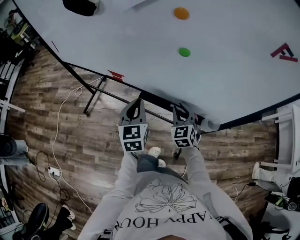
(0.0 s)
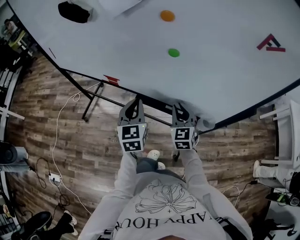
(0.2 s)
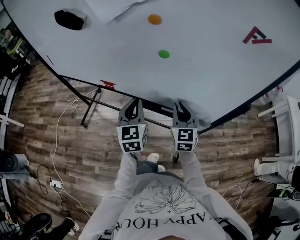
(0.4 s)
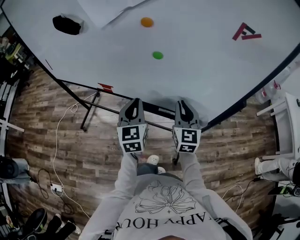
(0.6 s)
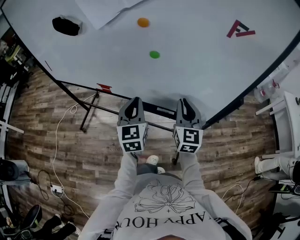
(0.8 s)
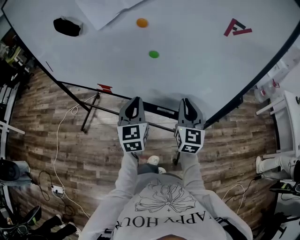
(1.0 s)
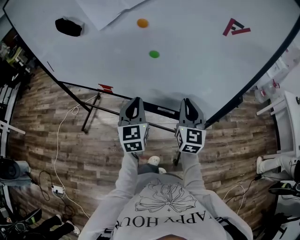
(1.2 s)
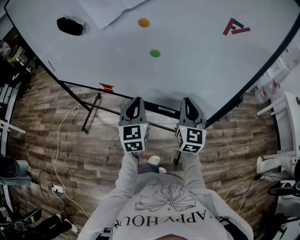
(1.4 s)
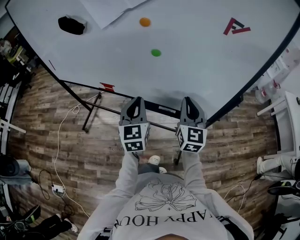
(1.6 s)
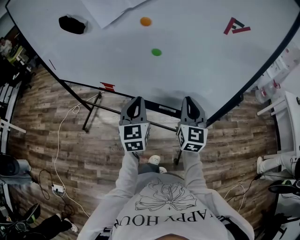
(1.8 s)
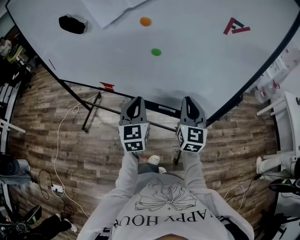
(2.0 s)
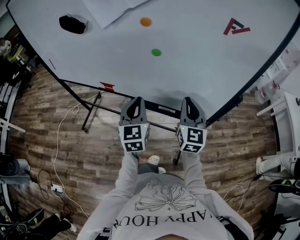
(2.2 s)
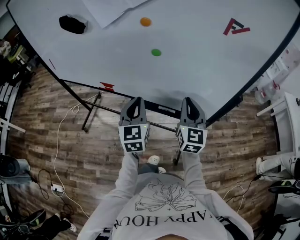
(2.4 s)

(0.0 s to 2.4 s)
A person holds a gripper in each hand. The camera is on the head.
0.0 s - 1.2 s: The right gripper travels upward and to the right by approximately 20 cm, and rotates about 40 degrees, while the left gripper heads upward and to the right, covering about 10 cm.
1.2 s - 2.4 s: Both grippers stay put.

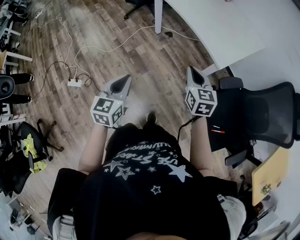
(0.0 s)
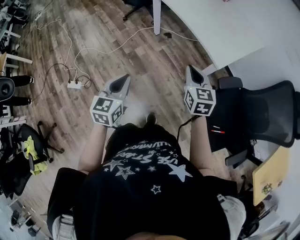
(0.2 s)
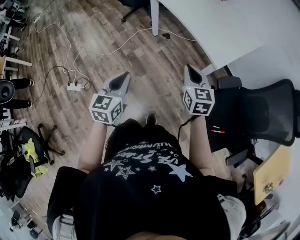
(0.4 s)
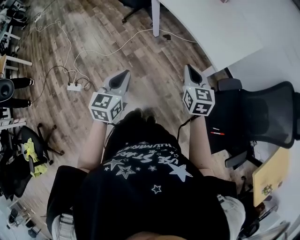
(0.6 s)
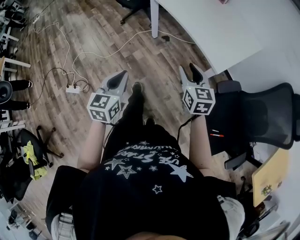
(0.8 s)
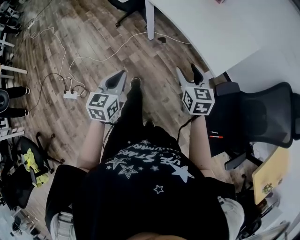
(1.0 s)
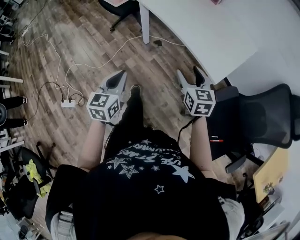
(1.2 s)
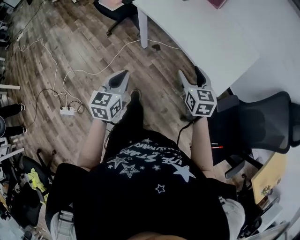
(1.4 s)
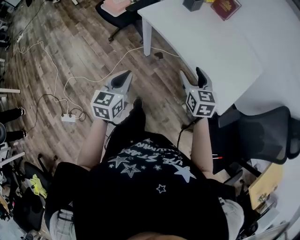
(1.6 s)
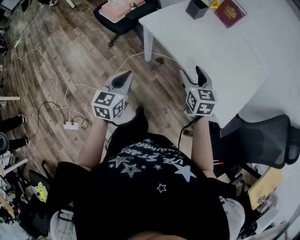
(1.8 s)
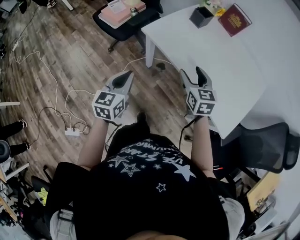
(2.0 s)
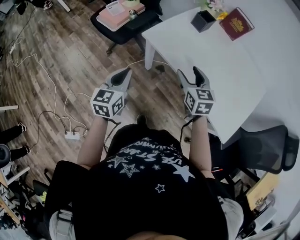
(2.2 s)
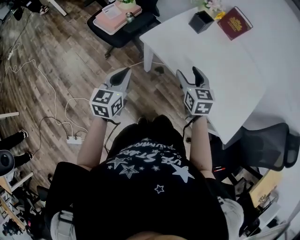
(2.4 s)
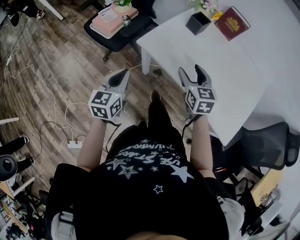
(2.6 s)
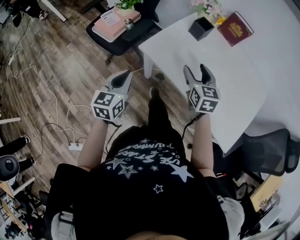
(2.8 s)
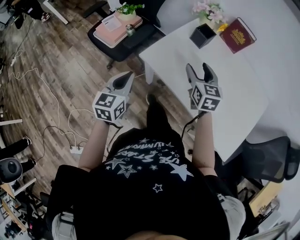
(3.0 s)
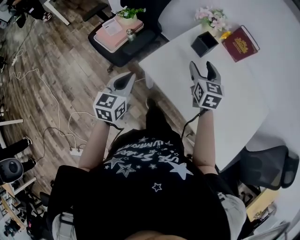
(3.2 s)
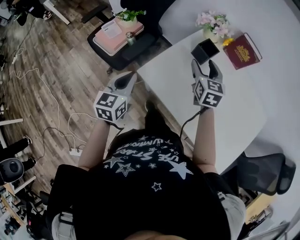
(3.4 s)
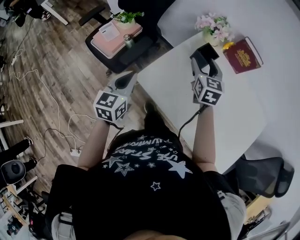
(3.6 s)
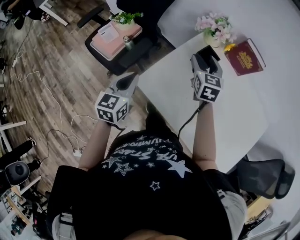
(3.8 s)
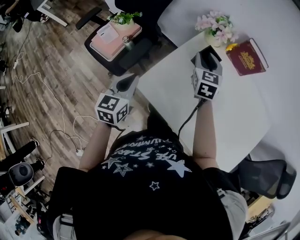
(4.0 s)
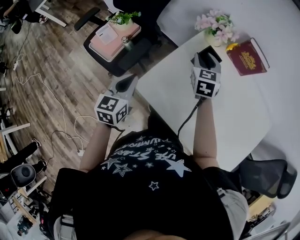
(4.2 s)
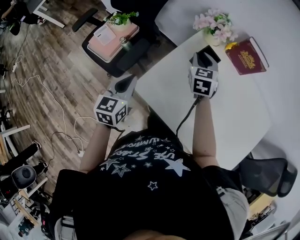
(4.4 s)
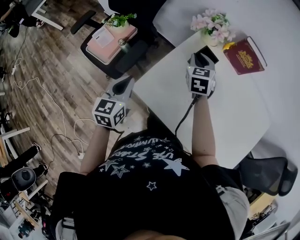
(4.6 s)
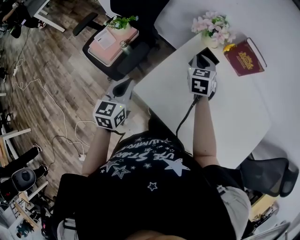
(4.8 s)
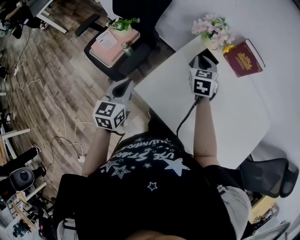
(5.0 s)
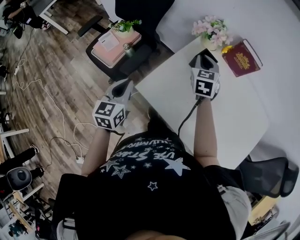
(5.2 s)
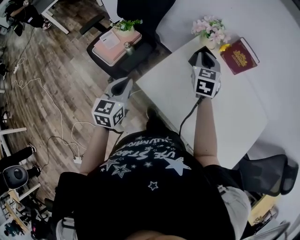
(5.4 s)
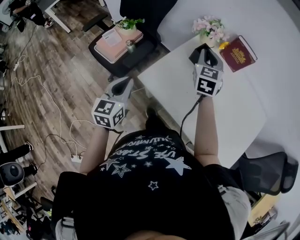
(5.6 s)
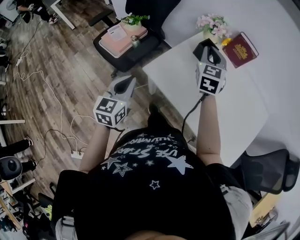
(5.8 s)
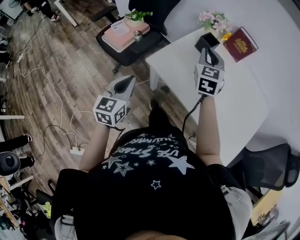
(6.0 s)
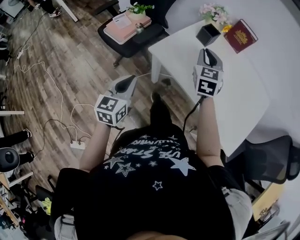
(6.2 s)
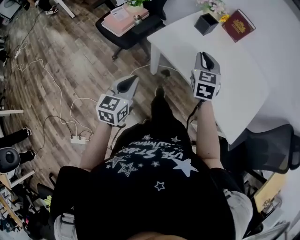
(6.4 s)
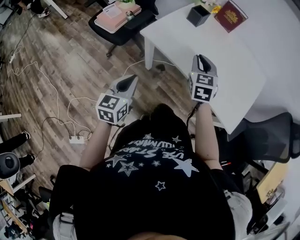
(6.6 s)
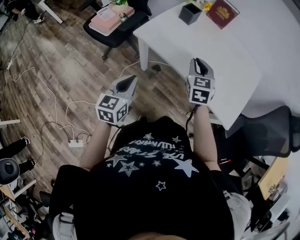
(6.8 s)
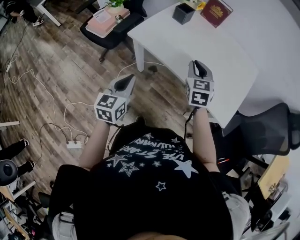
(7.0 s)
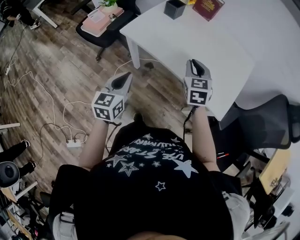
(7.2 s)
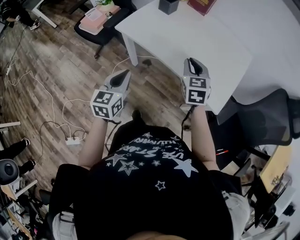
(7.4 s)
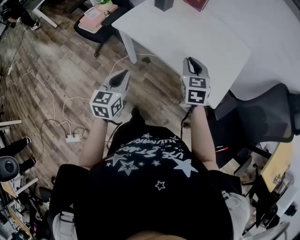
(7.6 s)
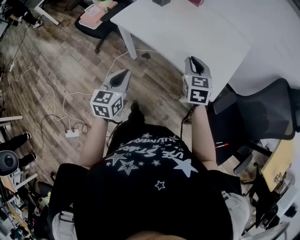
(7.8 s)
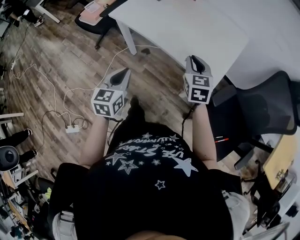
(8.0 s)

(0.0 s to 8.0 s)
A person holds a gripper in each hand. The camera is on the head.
0.0 s - 1.6 s: The grippers both shift forward by roughly 30 cm. The right gripper opens its fingers.
1.6 s - 3.2 s: Both grippers move forward, approximately 35 cm.
3.2 s - 4.8 s: The two grippers go some 15 cm forward. The right gripper closes up.
4.8 s - 6.4 s: Both grippers travel together backward, roughly 30 cm.
6.4 s - 8.0 s: Both grippers move to the right and backward, roughly 30 cm.

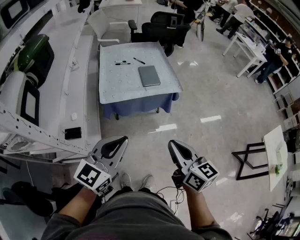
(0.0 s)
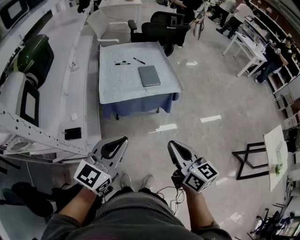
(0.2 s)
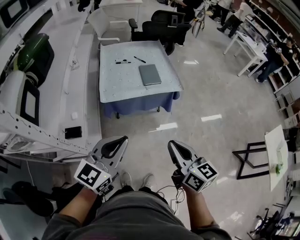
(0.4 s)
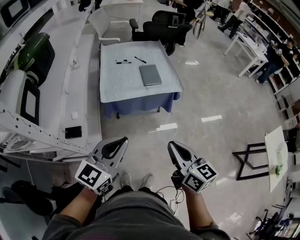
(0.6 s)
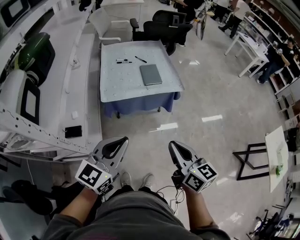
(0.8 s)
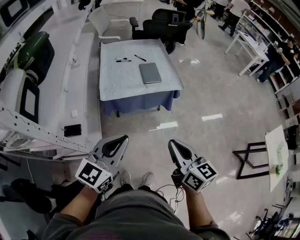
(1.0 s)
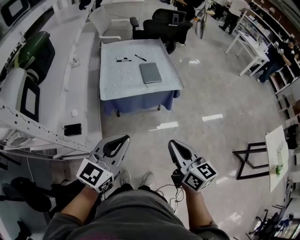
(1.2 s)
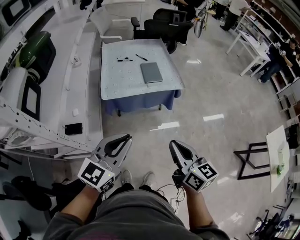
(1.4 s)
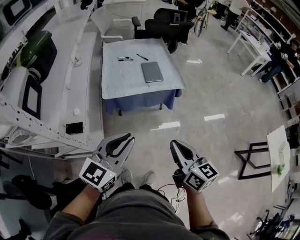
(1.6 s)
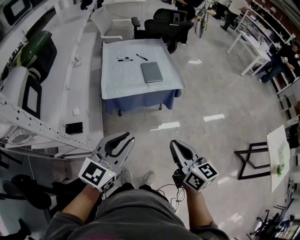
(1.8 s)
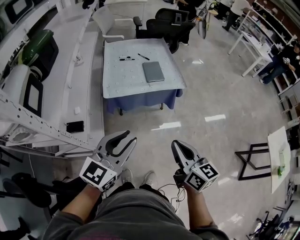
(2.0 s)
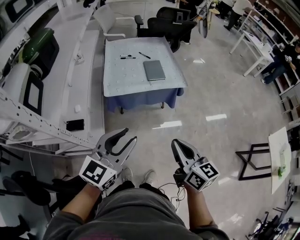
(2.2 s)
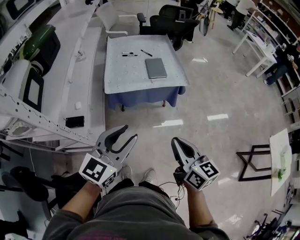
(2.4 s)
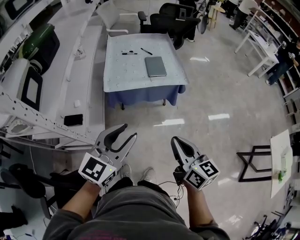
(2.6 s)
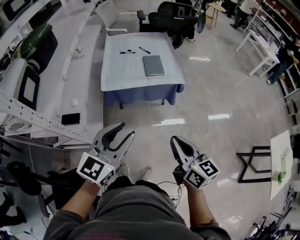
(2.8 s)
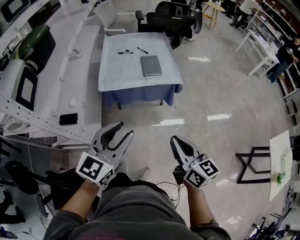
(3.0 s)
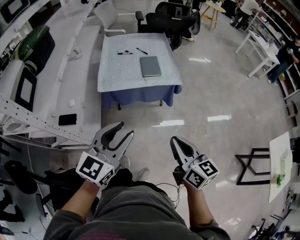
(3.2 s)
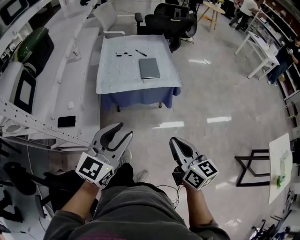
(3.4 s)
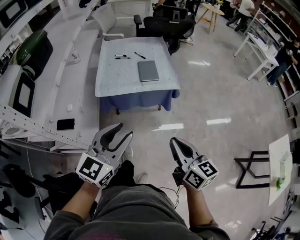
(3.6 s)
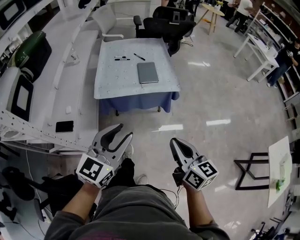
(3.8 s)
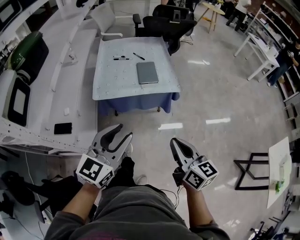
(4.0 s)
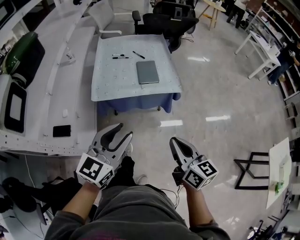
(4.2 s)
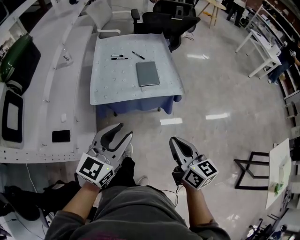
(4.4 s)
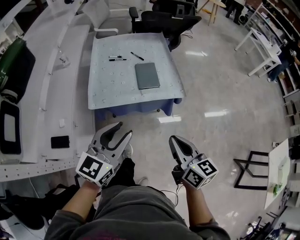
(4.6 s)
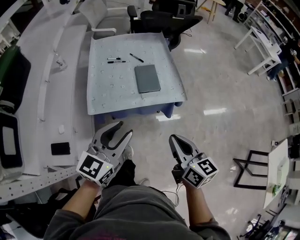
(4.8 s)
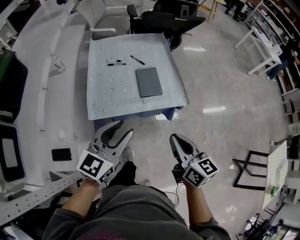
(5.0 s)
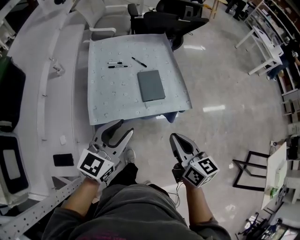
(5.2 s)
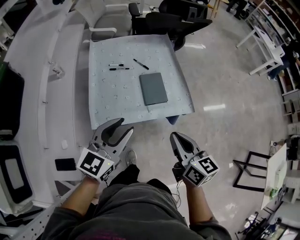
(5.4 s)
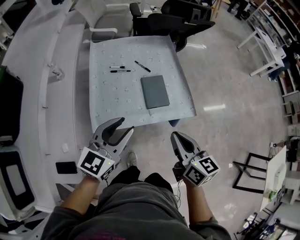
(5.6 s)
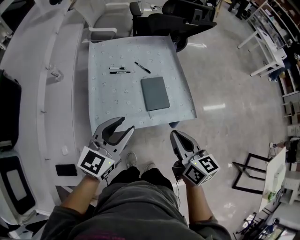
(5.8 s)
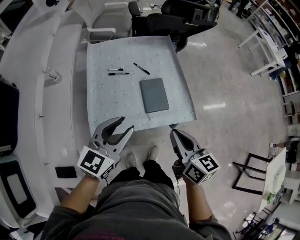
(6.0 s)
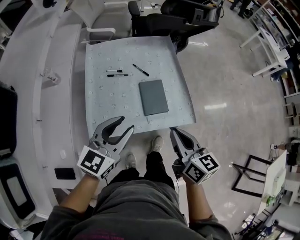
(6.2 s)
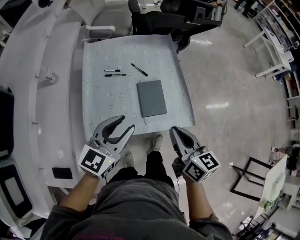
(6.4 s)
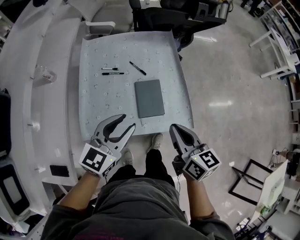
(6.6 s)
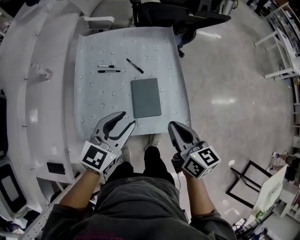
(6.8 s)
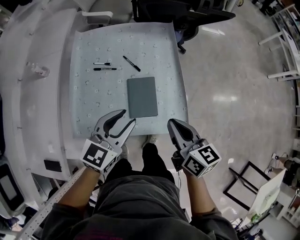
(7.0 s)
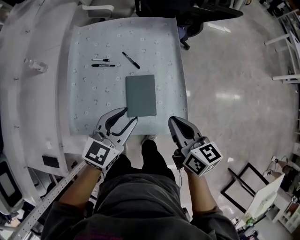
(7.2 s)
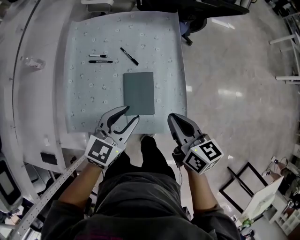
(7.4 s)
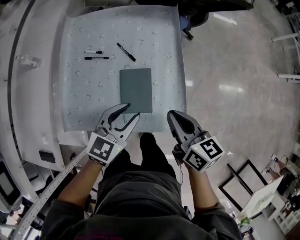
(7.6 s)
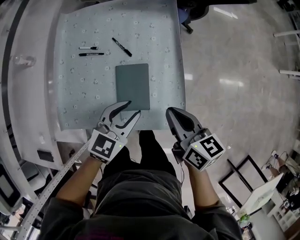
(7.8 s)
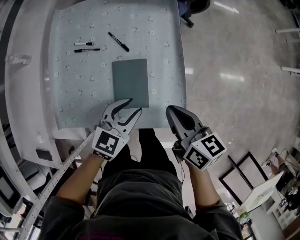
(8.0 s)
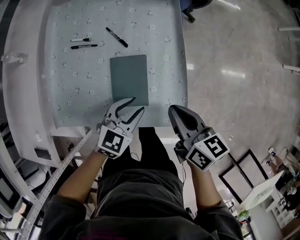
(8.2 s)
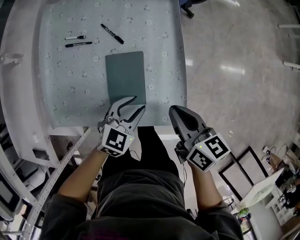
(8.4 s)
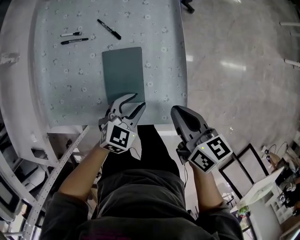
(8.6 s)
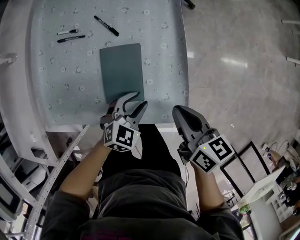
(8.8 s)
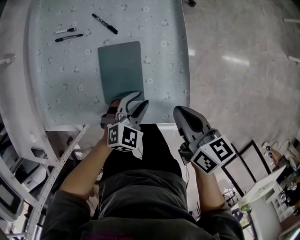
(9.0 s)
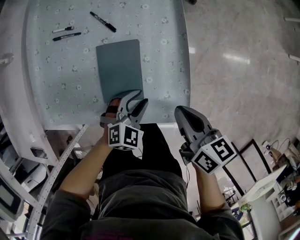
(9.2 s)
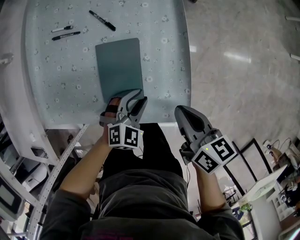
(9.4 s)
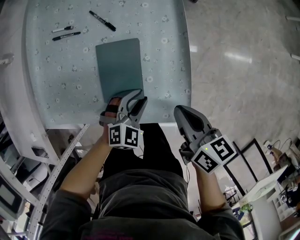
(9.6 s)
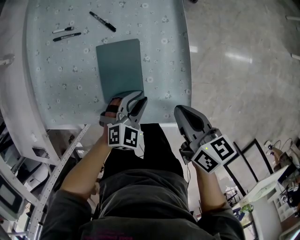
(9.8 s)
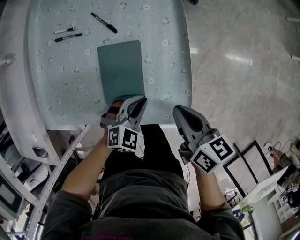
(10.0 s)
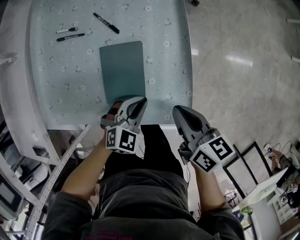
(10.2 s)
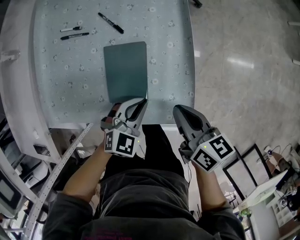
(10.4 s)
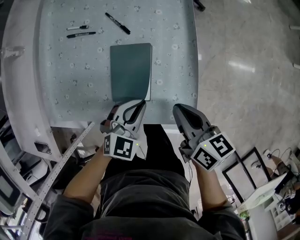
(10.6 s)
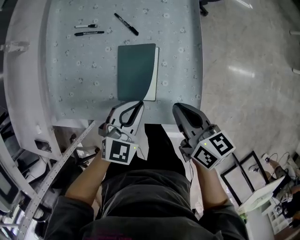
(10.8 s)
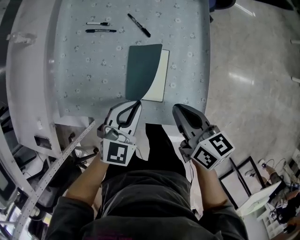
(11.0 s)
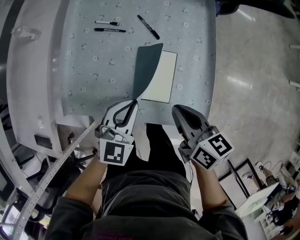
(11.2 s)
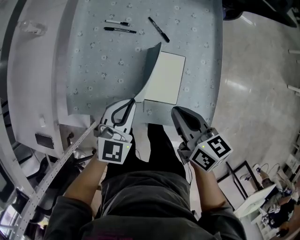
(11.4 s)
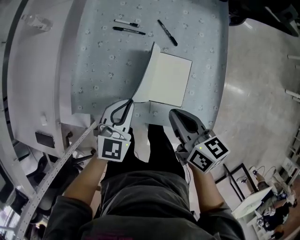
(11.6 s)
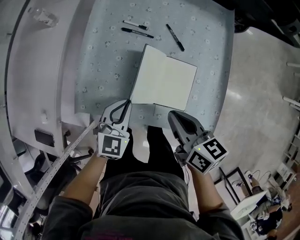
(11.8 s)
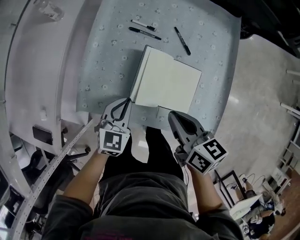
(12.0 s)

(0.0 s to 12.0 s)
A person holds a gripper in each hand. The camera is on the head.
0.0 s - 1.6 s: There are only small adjustments of the grippers.
1.6 s - 3.0 s: The grippers both shift to the right by about 5 cm. The left gripper opens its fingers.
3.0 s - 4.4 s: The grippers both shift forward by about 15 cm.
4.4 s - 6.0 s: Both grippers travel together forward, approximately 30 cm.
6.0 s - 7.6 s: The left gripper goes approximately 30 cm to the right, downward and forward, while the right gripper heads forward, to the right and downward, covering roughly 25 cm.
7.6 s - 9.0 s: The right gripper travels downward by about 10 cm; the left gripper moves downward, about 20 cm, and changes its angle by roughly 30 degrees.
9.0 s - 10.4 s: The left gripper closes up.
10.4 s - 12.0 s: Both grippers travel together to the left, roughly 25 cm. The left gripper turns by roughly 30 degrees.

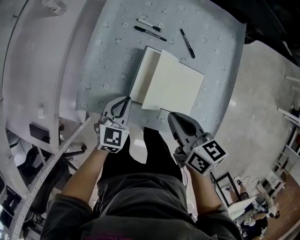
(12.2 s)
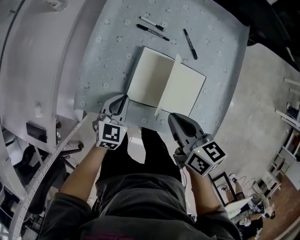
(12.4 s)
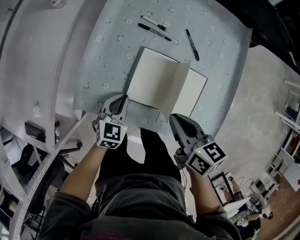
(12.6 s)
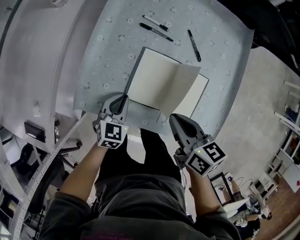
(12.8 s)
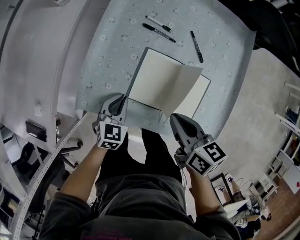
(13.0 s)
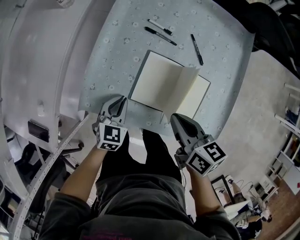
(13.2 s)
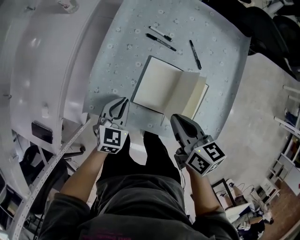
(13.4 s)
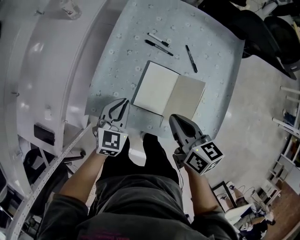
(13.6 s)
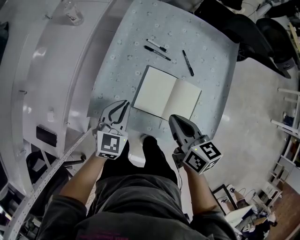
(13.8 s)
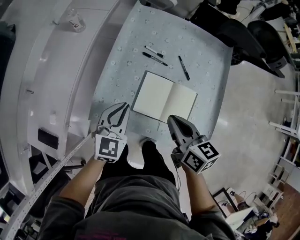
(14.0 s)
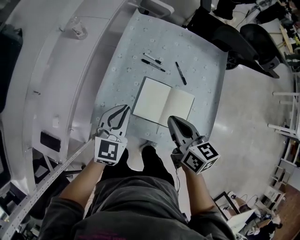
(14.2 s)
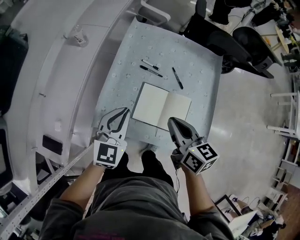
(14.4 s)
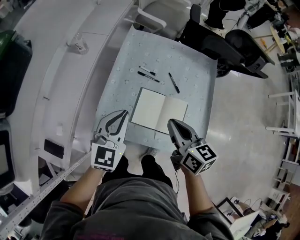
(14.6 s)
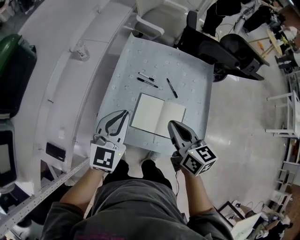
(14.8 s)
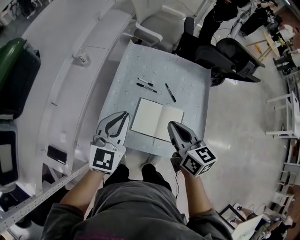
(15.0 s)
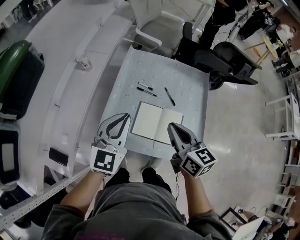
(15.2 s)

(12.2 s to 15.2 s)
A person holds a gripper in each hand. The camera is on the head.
12.2 s - 13.8 s: The right gripper shifts by about 5 cm; the left gripper goes roughly 10 cm upward.
13.8 s - 15.2 s: The right gripper goes some 15 cm upward; the left gripper is displaced upward by some 25 cm, and turns by roughly 20 degrees.
